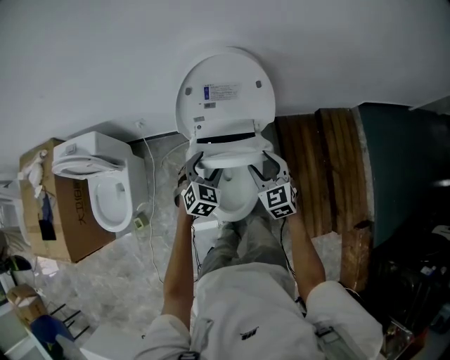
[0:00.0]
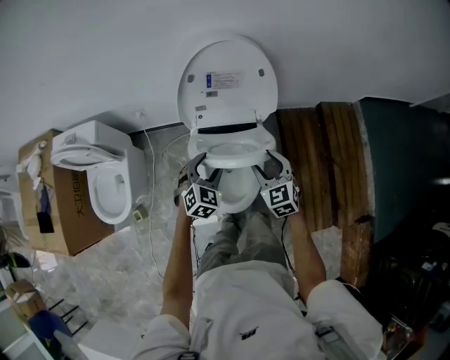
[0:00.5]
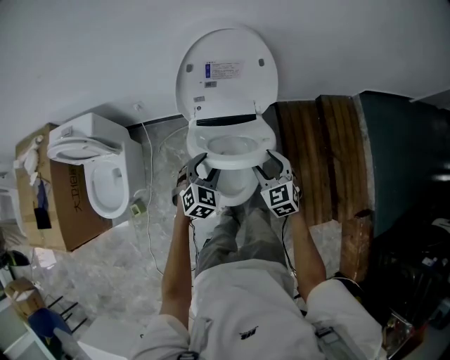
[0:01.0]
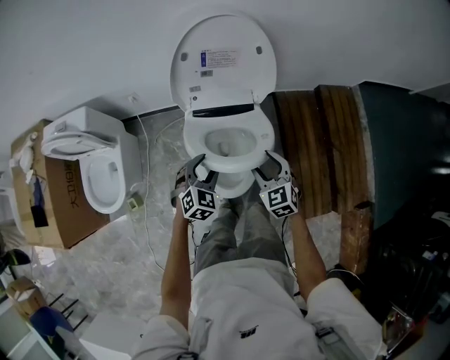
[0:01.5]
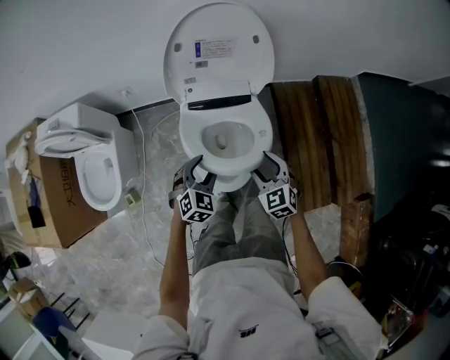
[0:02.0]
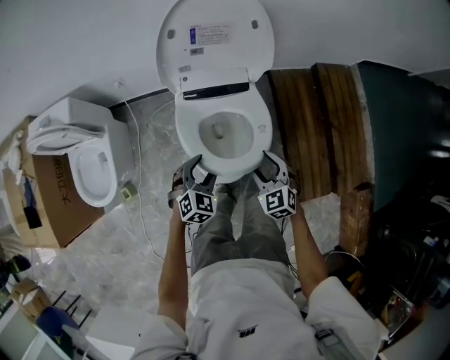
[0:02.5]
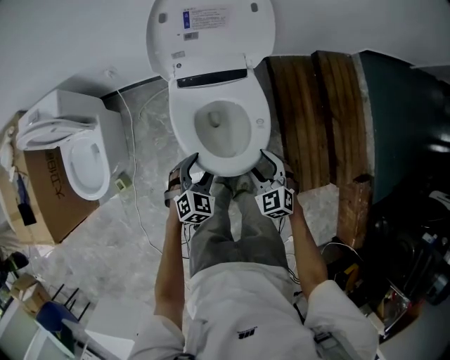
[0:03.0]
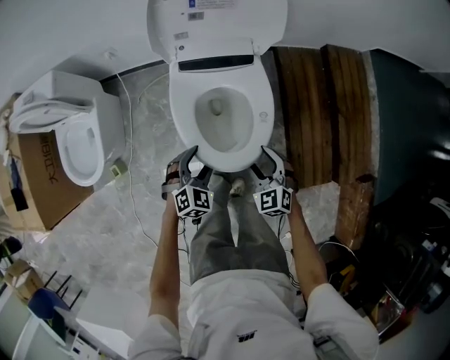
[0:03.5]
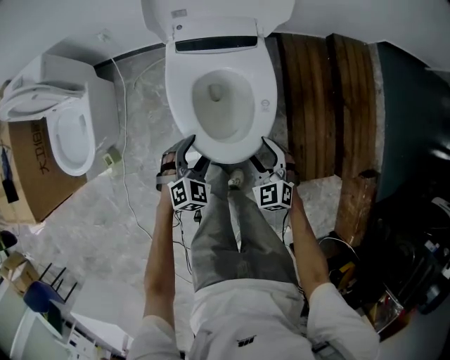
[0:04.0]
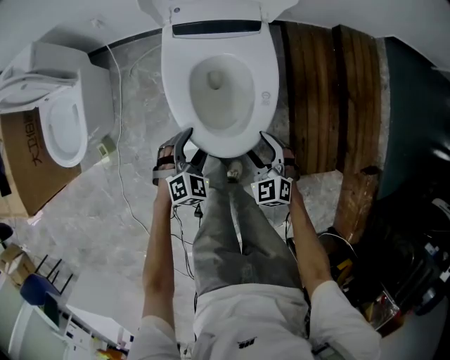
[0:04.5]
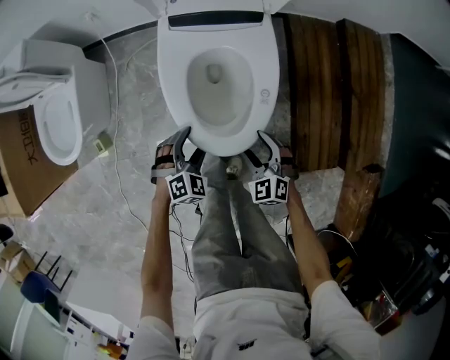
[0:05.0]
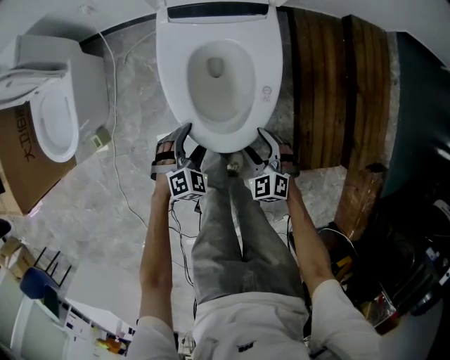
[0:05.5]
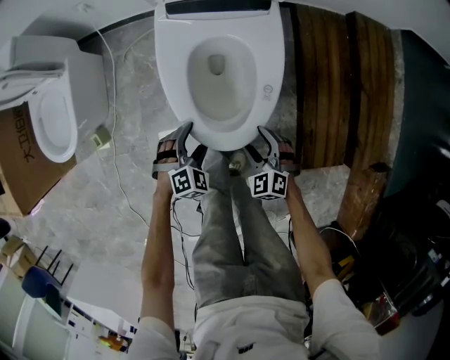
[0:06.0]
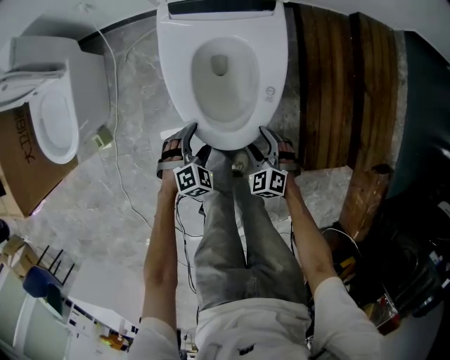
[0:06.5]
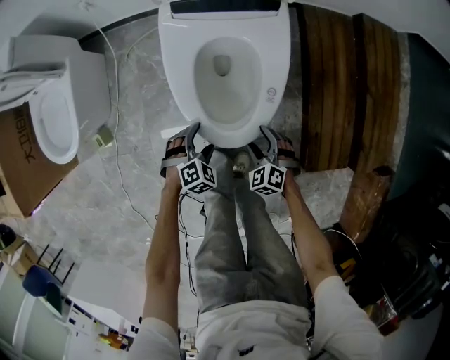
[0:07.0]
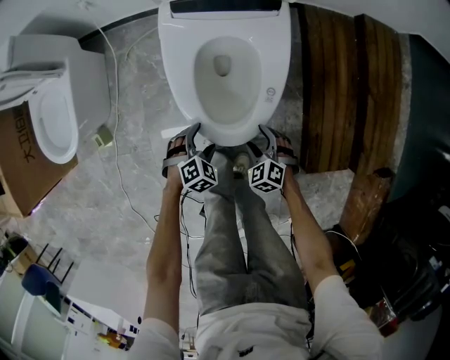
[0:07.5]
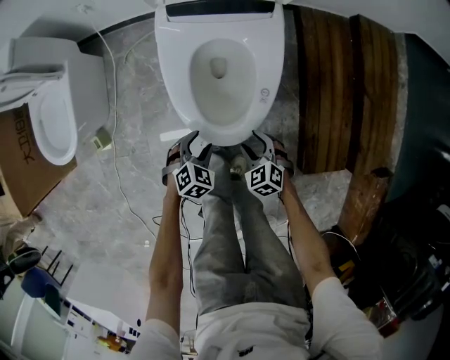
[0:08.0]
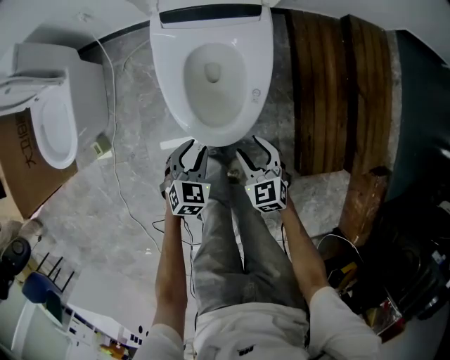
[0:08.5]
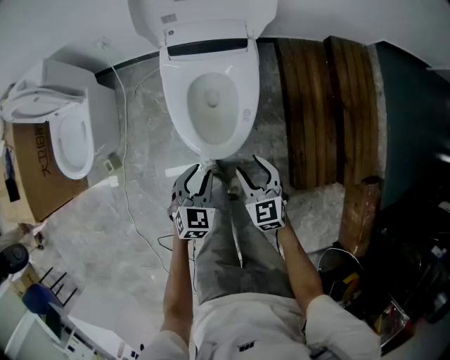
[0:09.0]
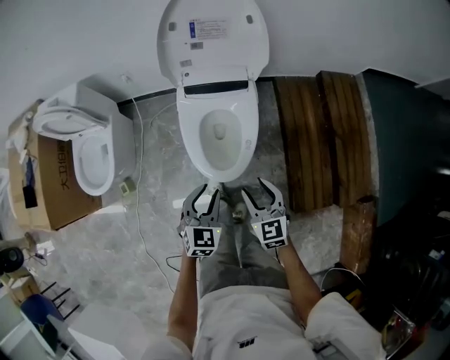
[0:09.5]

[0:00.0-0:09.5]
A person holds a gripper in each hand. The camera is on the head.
0:00.0 to 0:02.0: Both grippers move backward and downward, some 15 cm.
0:02.0 to 0:04.0: Both grippers travel together downward and backward, some 20 cm.
0:04.0 to 0:05.5: The grippers both shift downward by some 15 cm.
0:05.5 to 0:07.5: Both grippers move downward, about 10 cm.
0:07.5 to 0:09.5: The grippers both shift upward by approximately 40 cm. The left gripper points its fingers about 30 degrees further upward, and closes up; the right gripper points its fingers approximately 30 degrees further upward.

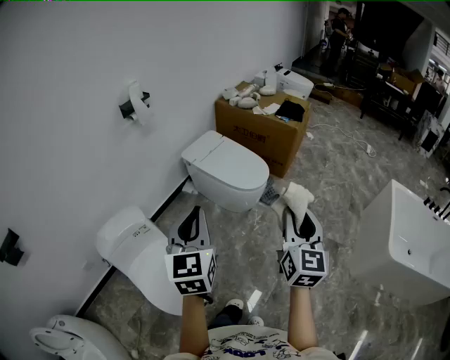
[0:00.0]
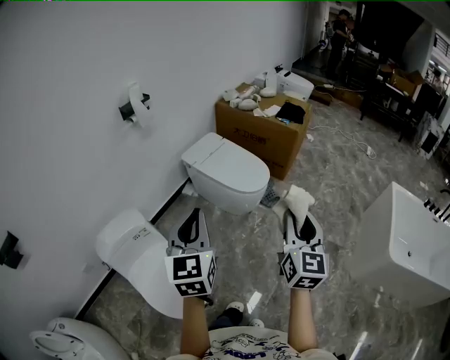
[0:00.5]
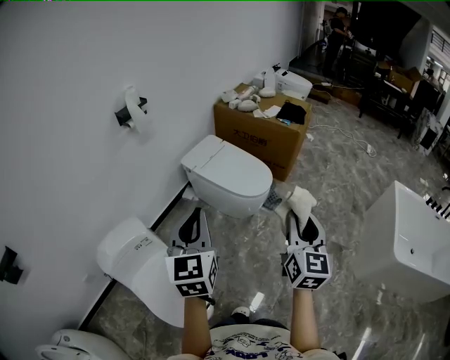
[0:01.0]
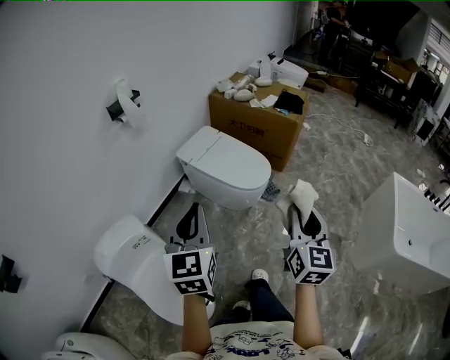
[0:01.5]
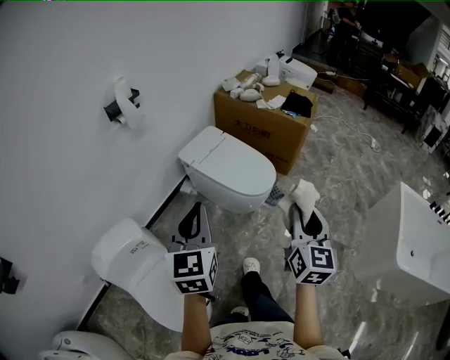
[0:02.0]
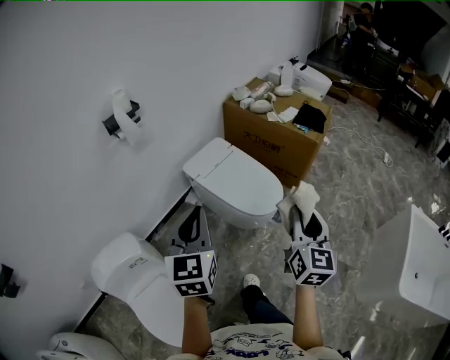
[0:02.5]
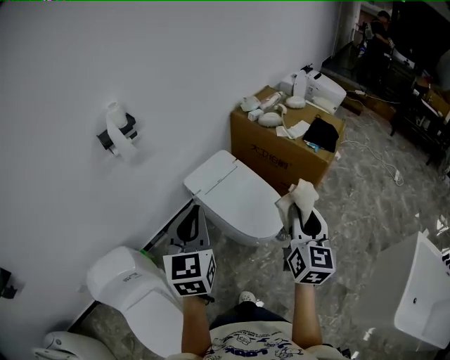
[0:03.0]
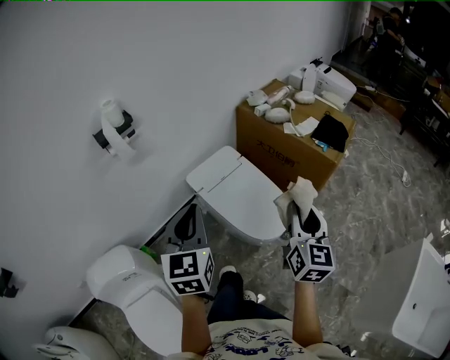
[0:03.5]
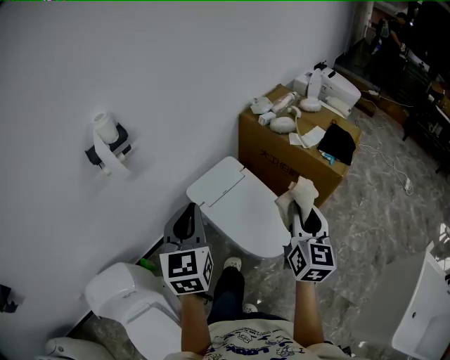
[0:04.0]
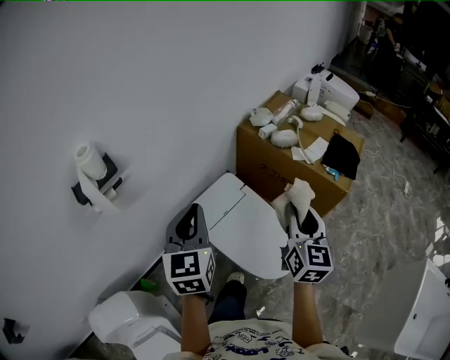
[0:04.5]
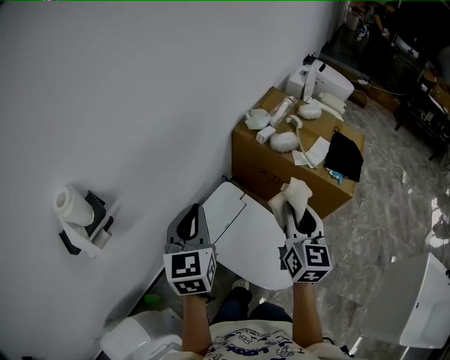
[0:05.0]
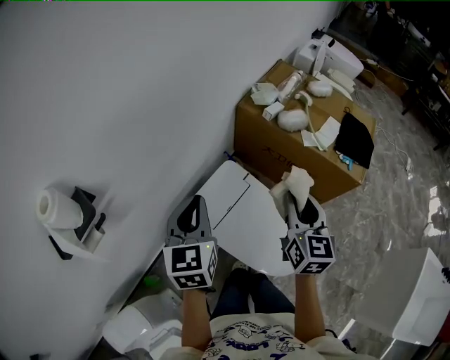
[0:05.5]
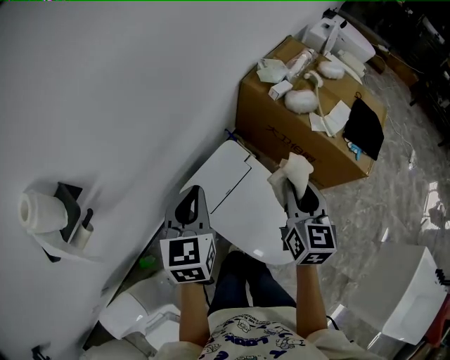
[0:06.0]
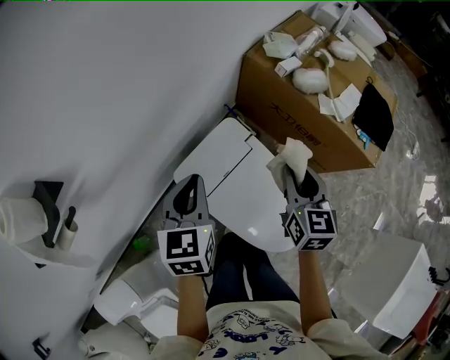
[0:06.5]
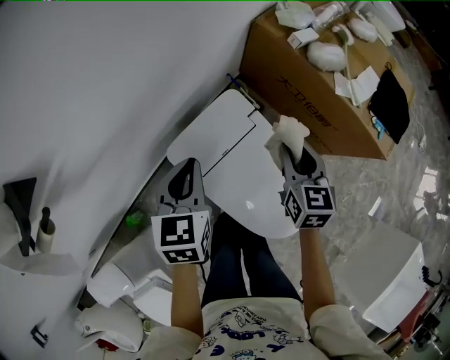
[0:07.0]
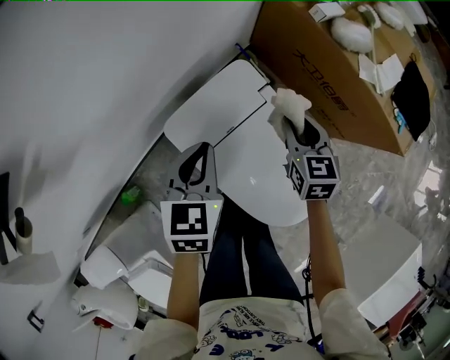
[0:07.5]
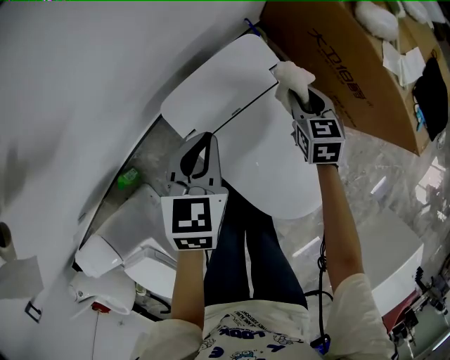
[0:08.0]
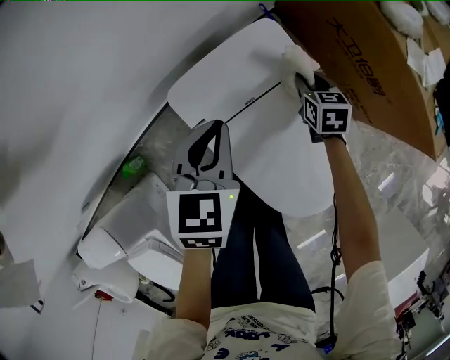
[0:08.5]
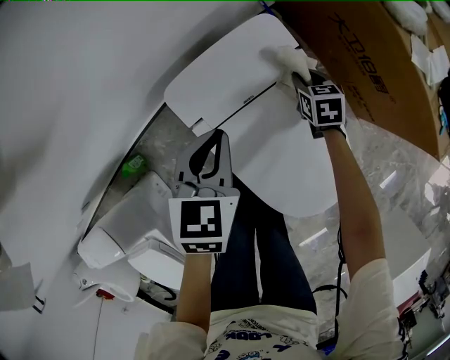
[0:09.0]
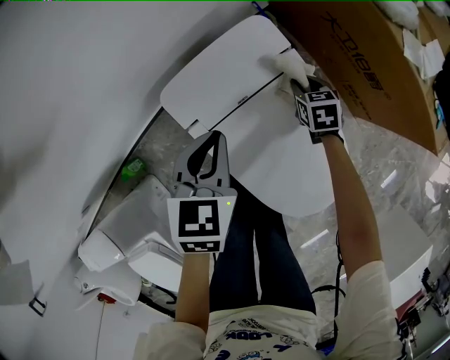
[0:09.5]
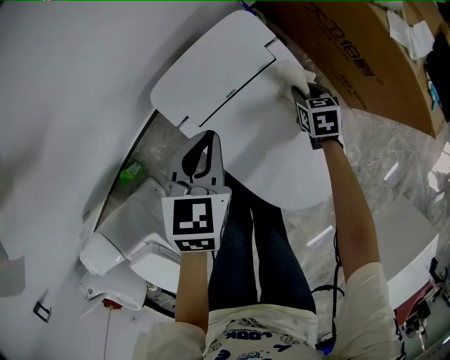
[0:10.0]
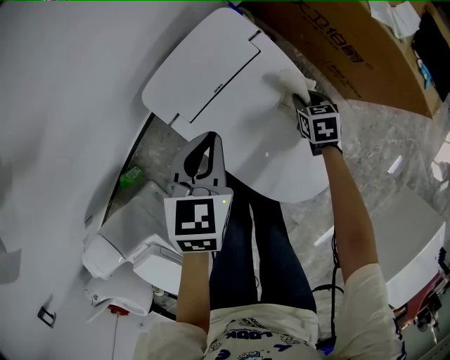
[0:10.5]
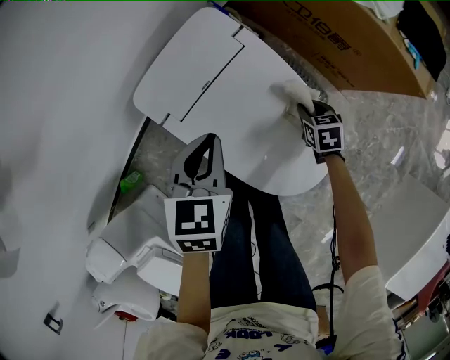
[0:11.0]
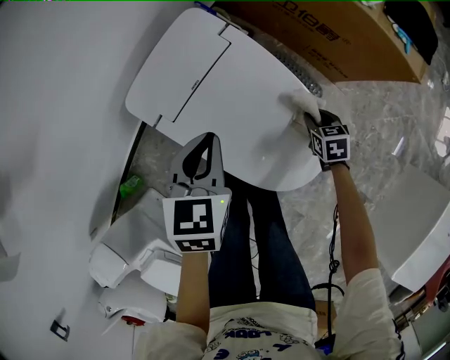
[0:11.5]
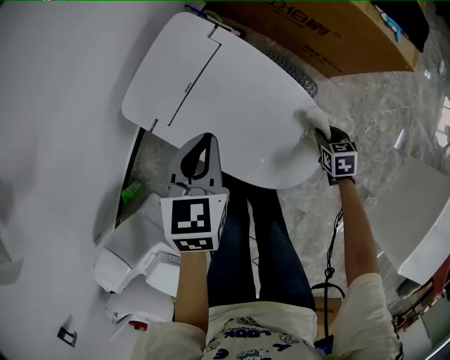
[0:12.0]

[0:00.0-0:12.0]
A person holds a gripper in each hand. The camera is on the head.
0:00.0 to 0:02.0: The grippers both shift forward by approximately 20 cm.
0:02.0 to 0:04.0: The two grippers travel together, forward, about 50 cm.
0:04.0 to 0:06.0: The grippers both shift forward by roughly 35 cm.
0:06.0 to 0:08.0: Both grippers travel together downward, roughly 35 cm. The right gripper rotates some 30 degrees.
0:08.0 to 0:10.0: The left gripper shifts by roughly 5 cm; the right gripper is displaced downward and backward by approximately 15 cm.
0:10.0 to 0:12.0: The left gripper travels to the right and backward by roughly 15 cm, while the right gripper heads backward and to the right, covering roughly 30 cm.

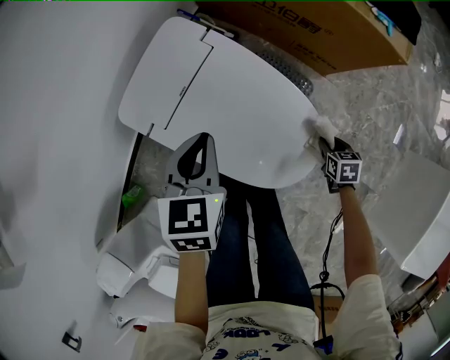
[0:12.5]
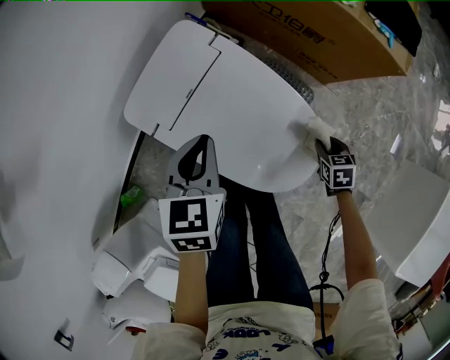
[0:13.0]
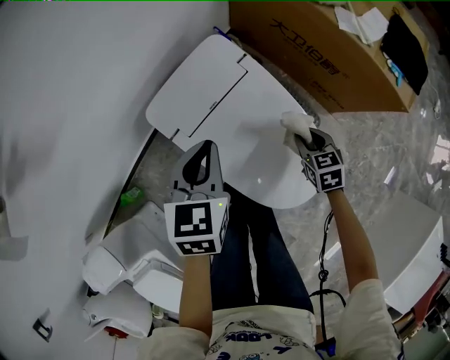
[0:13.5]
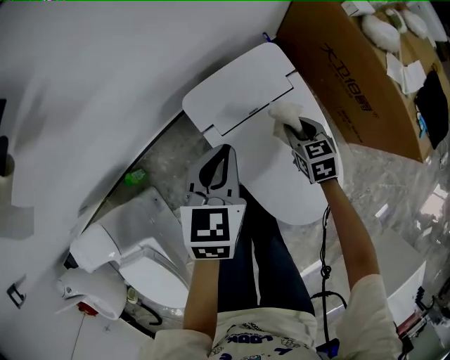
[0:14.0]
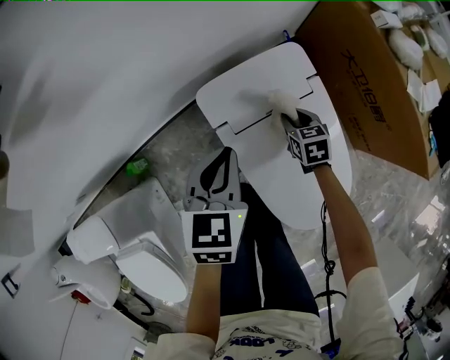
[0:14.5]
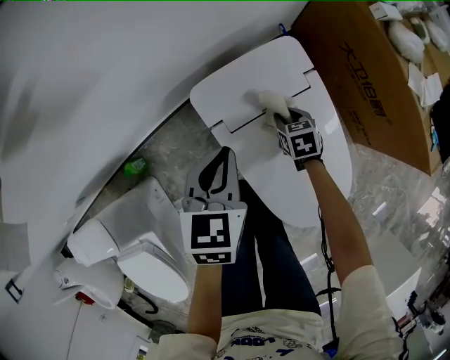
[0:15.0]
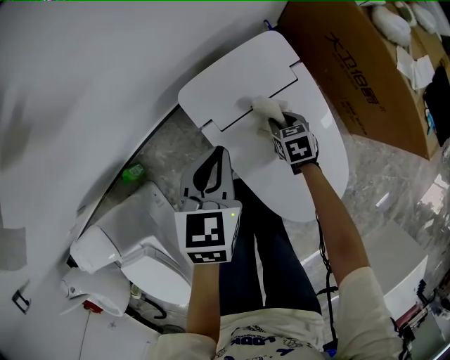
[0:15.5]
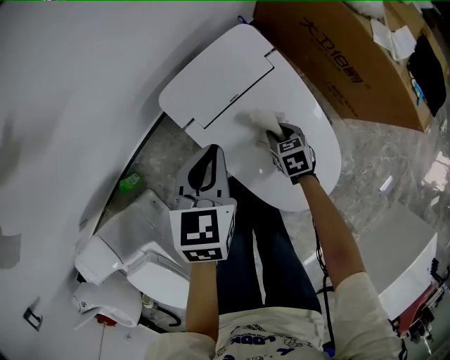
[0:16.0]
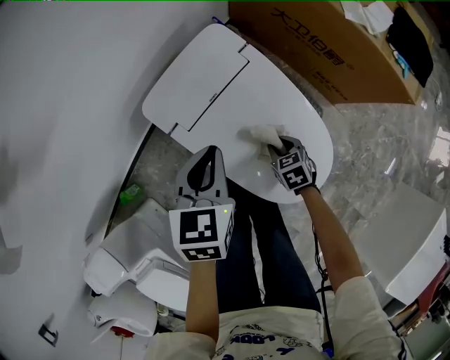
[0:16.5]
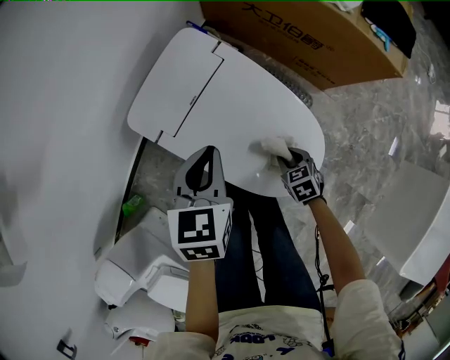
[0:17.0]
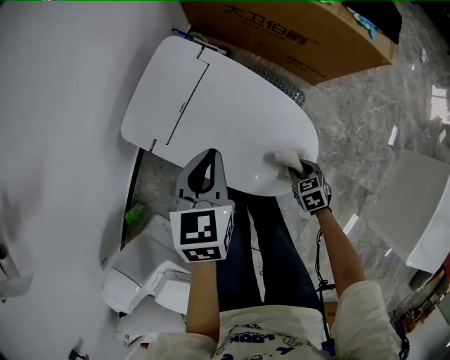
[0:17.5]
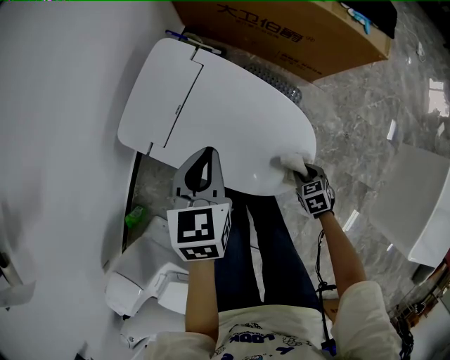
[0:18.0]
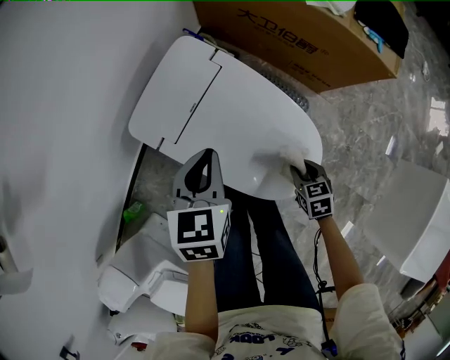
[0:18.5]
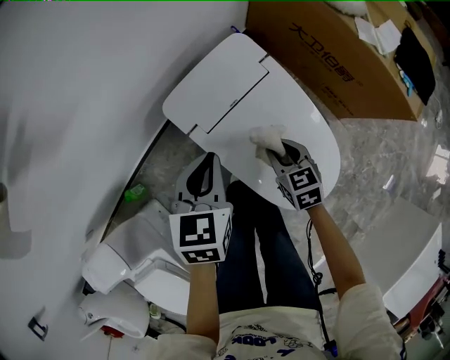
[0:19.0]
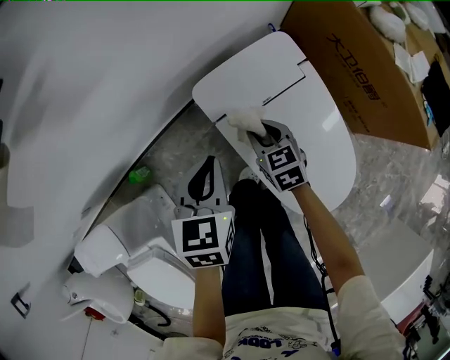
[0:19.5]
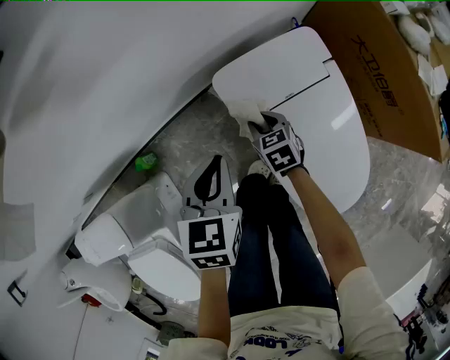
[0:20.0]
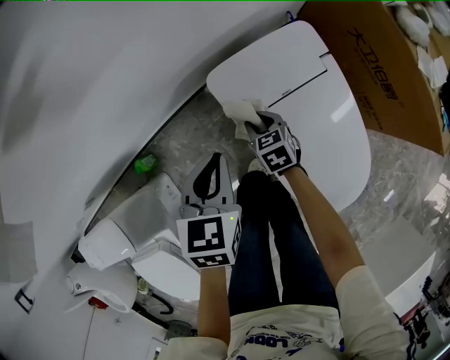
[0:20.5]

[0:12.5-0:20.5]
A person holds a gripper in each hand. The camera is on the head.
0:12.5 to 0:14.5: The right gripper ends up roughly 50 cm from where it was, and swivels some 40 degrees. Meanwhile the left gripper changes place by some 20 cm, and turns by some 30 degrees.
0:14.5 to 0:16.5: The right gripper goes some 20 cm backward and to the right, while the left gripper is displaced to the right and backward by some 10 cm.
0:16.5 to 0:18.5: The right gripper shifts by roughly 15 cm.
0:18.5 to 0:20.5: The left gripper shifts by roughly 25 cm, and changes its angle by some 30 degrees; the right gripper shifts by some 40 cm, and swivels approximately 30 degrees.
